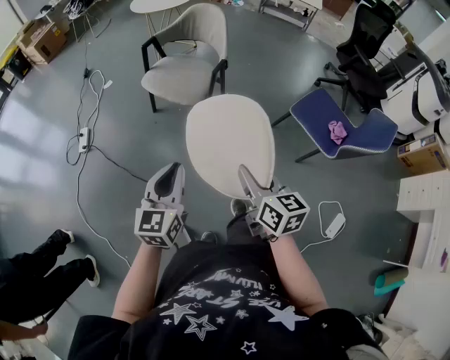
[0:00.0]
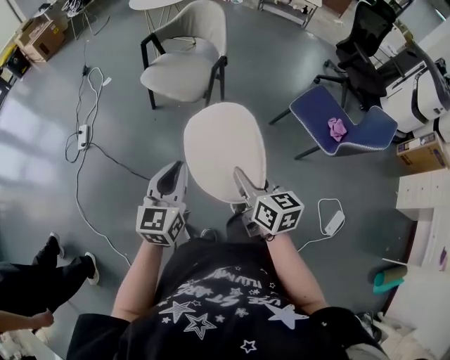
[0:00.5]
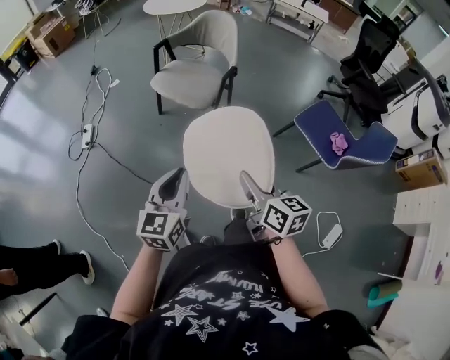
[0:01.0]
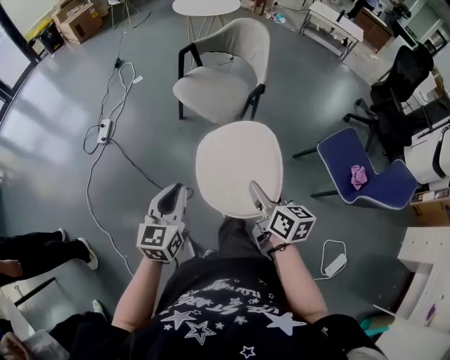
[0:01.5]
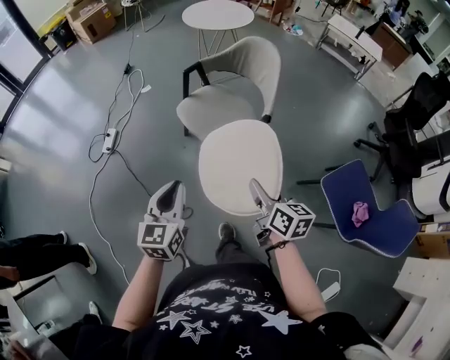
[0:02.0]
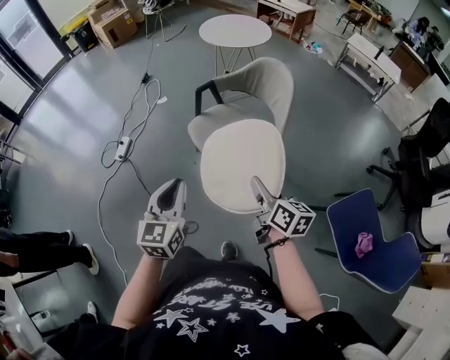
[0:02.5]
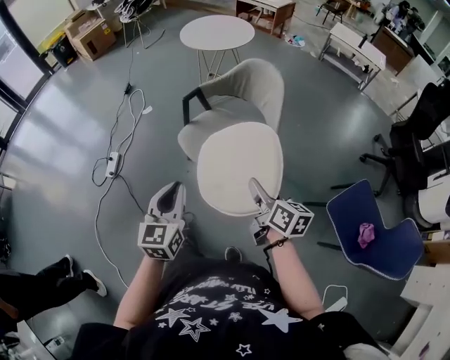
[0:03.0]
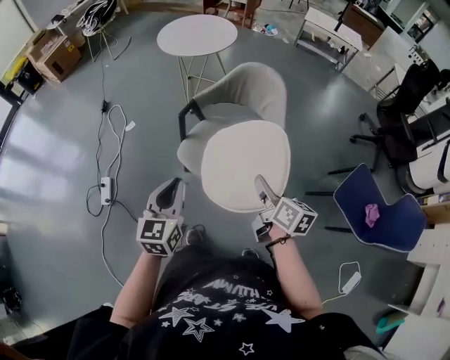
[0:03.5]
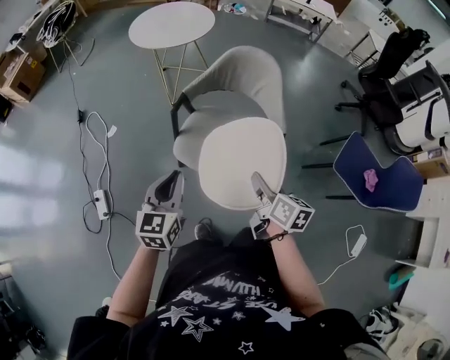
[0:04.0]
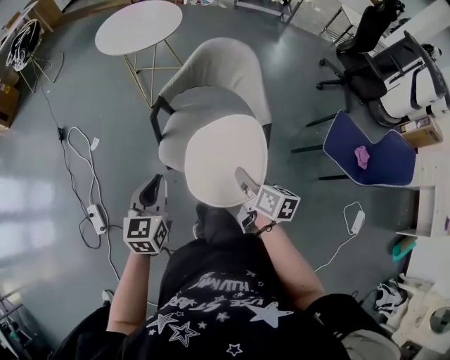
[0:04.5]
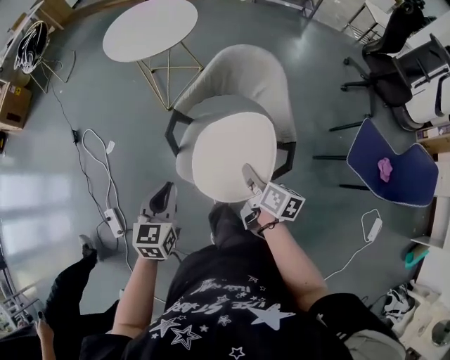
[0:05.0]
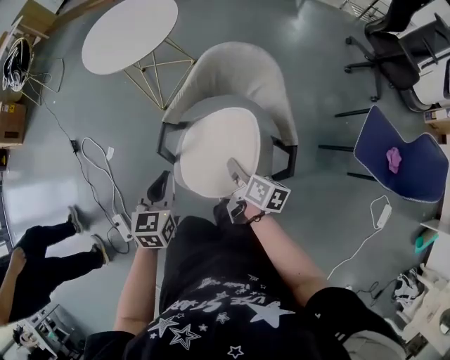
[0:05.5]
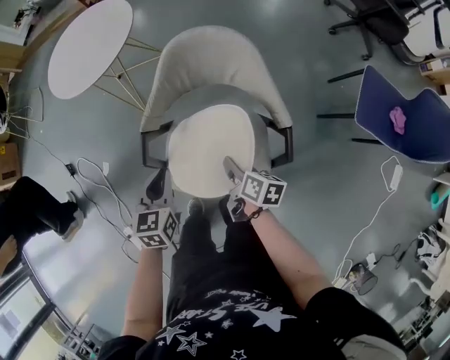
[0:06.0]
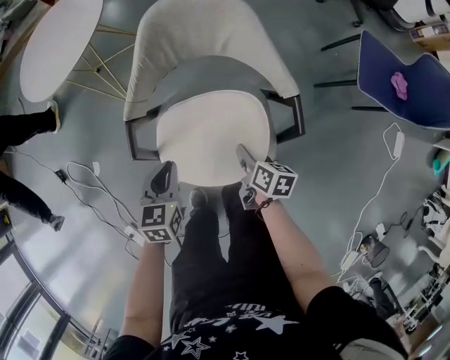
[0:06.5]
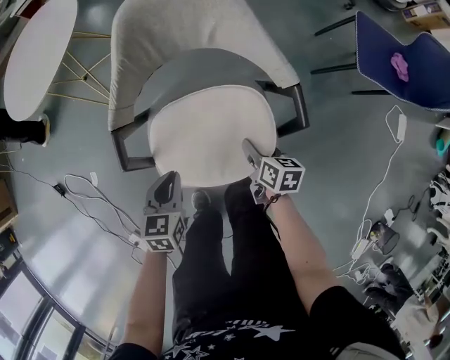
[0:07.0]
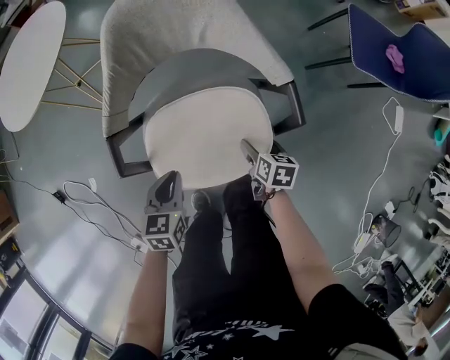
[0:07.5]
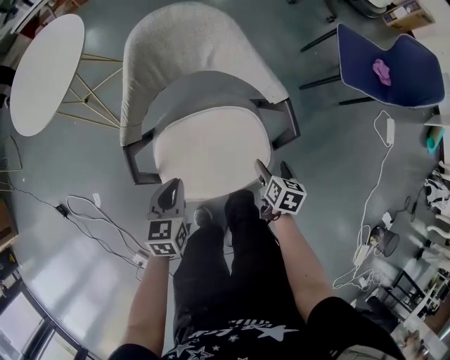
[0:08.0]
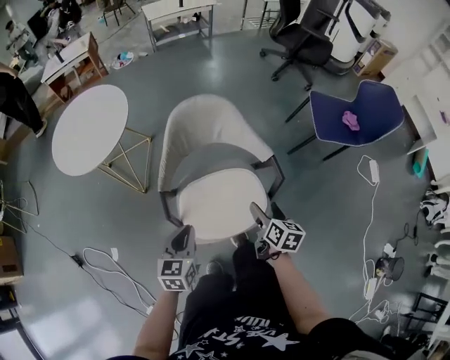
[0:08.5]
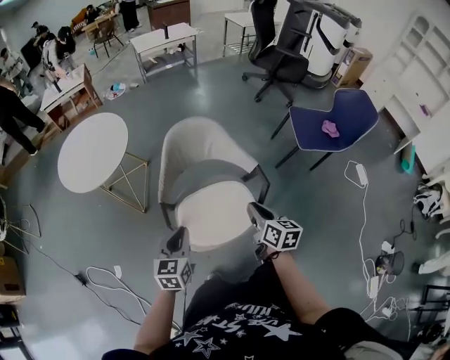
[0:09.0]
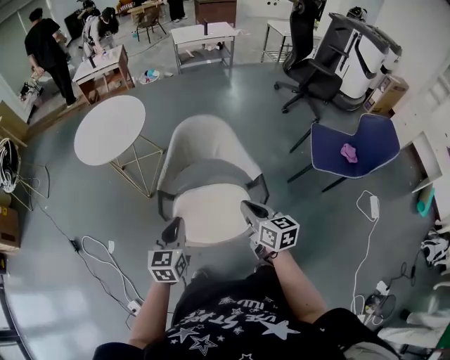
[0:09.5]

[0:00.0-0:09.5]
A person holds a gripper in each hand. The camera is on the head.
0:00.0 to 0:02.0: Both grippers travel together forward, some 20 cm.
0:02.0 to 0:04.0: The right gripper shifts by roughly 25 cm, and changes its angle by roughly 30 degrees. The left gripper moves about 35 cm, and swivels approximately 30 degrees.
0:04.0 to 0:05.5: The left gripper shifts some 20 cm forward. Meanwhile the right gripper goes about 25 cm forward and downward, and turns by roughly 20 degrees.
0:05.5 to 0:07.5: Both grippers travel together downward, roughly 20 cm. The left gripper swivels approximately 30 degrees; the right gripper turns by about 30 degrees, and opens.
0:07.5 to 0:09.5: The grippers both shift upward by approximately 30 cm. The left gripper turns by about 30 degrees; the right gripper angles its fingers upward, by about 30 degrees, and closes up.

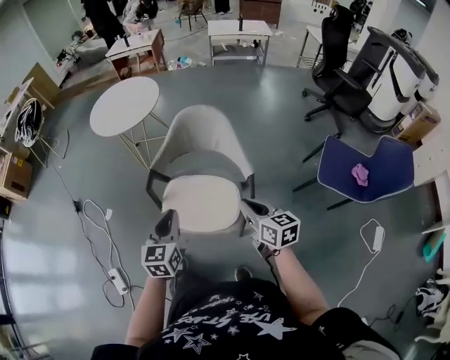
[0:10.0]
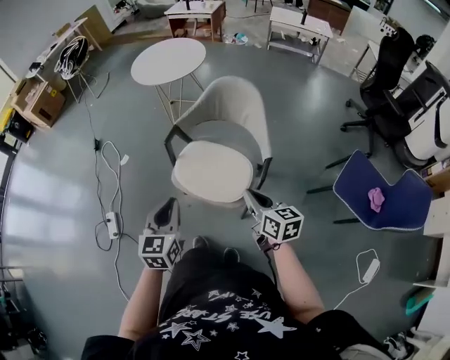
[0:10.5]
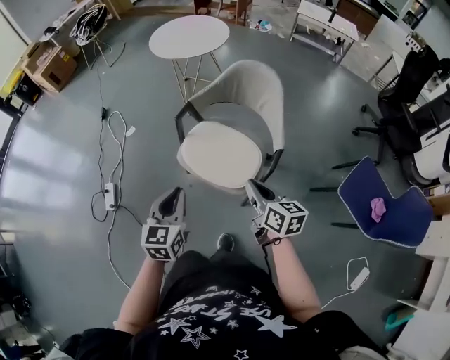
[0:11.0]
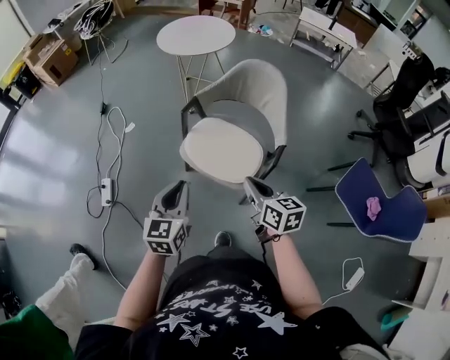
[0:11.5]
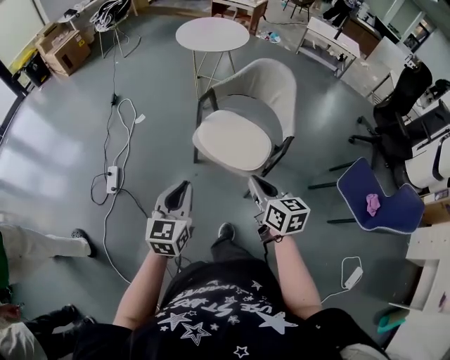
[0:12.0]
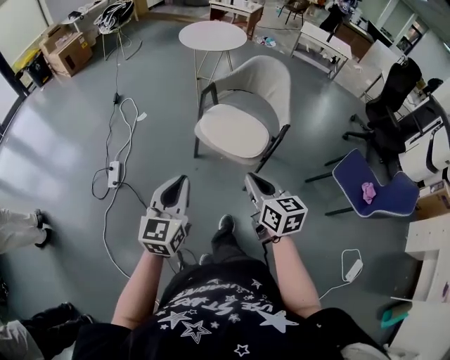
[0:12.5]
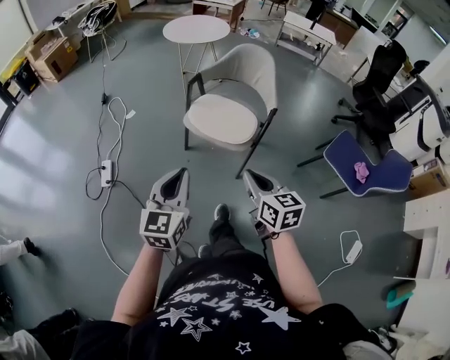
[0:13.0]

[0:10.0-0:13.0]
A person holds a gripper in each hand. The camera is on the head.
0:10.0 to 0:11.5: The left gripper heads backward and to the left, covering approximately 15 cm. The right gripper heads to the left and backward, covering approximately 10 cm.
0:11.5 to 0:13.0: The two grippers go approximately 20 cm backward.

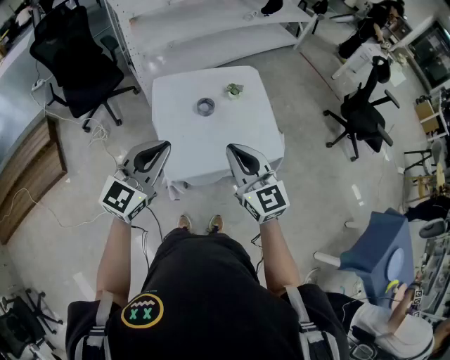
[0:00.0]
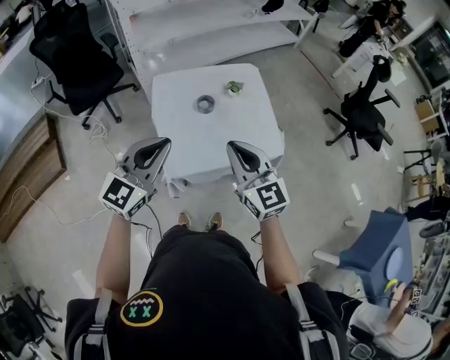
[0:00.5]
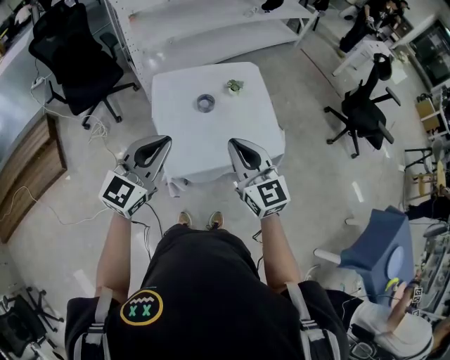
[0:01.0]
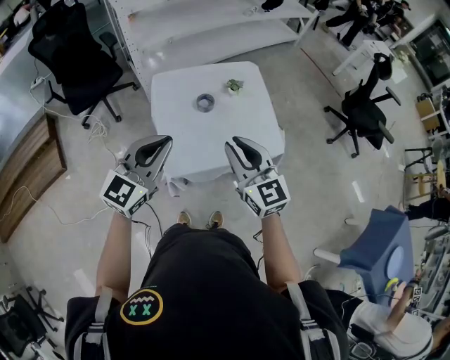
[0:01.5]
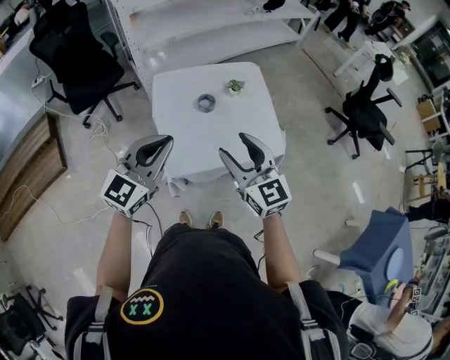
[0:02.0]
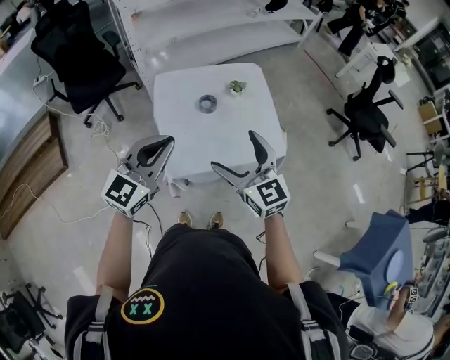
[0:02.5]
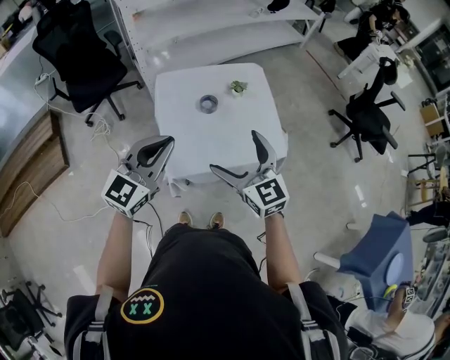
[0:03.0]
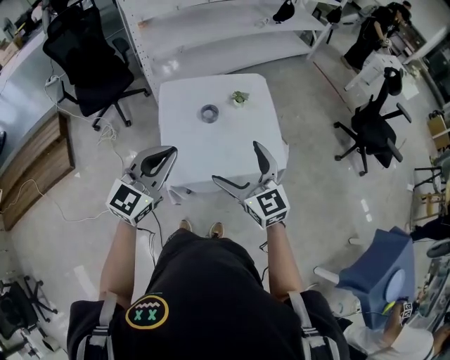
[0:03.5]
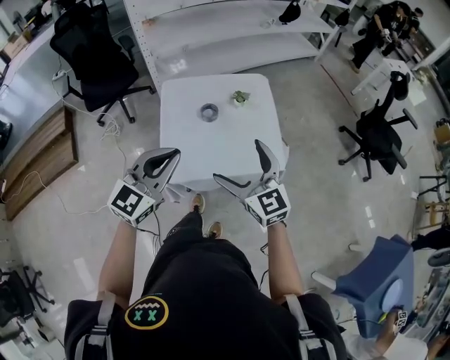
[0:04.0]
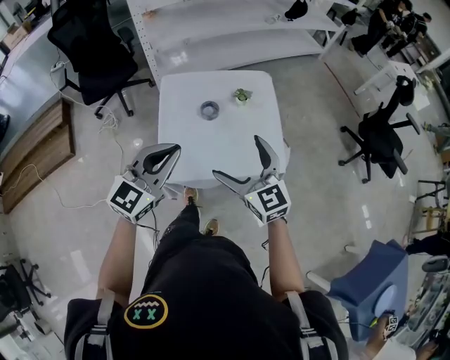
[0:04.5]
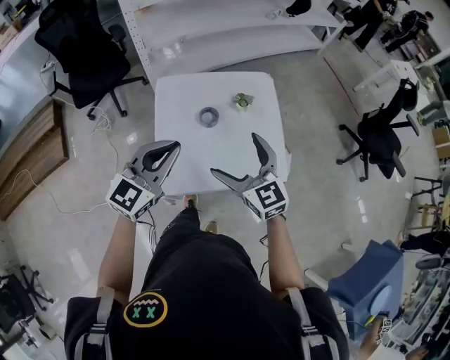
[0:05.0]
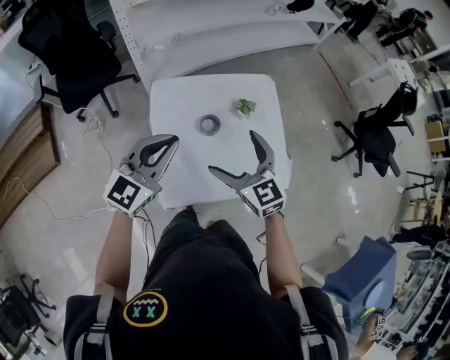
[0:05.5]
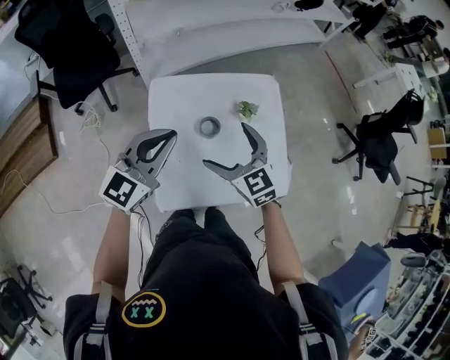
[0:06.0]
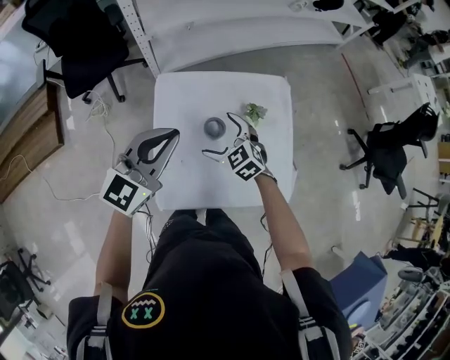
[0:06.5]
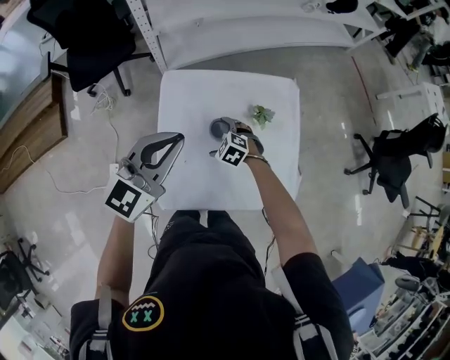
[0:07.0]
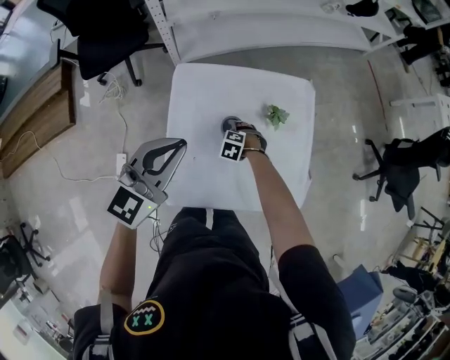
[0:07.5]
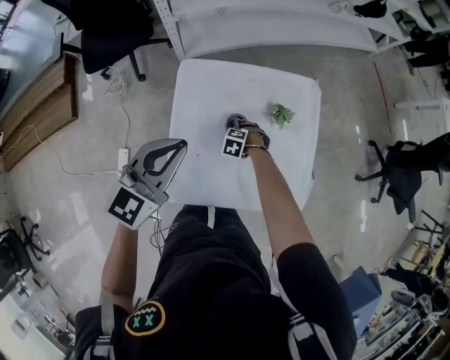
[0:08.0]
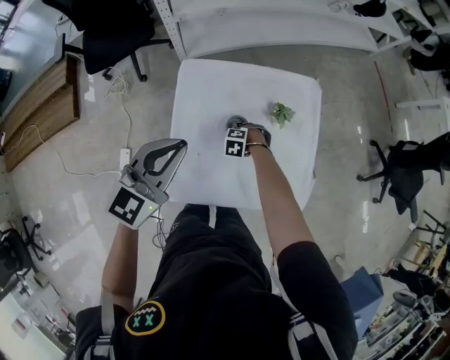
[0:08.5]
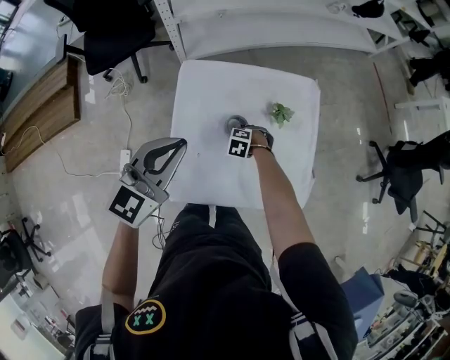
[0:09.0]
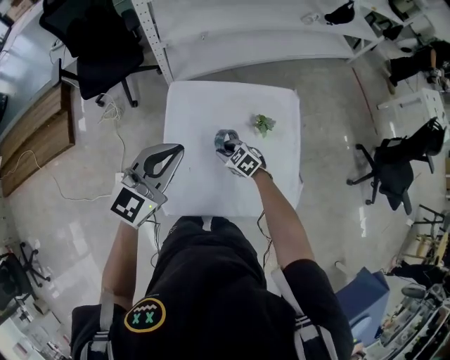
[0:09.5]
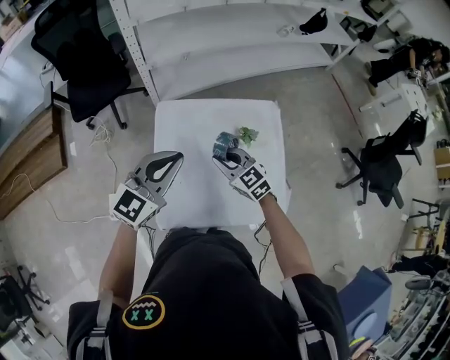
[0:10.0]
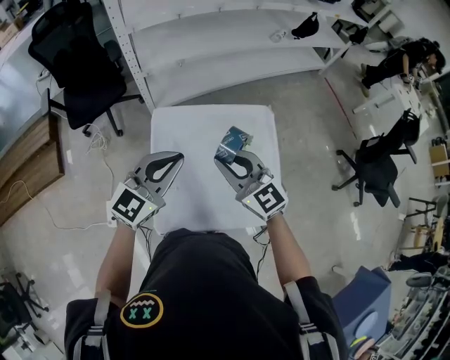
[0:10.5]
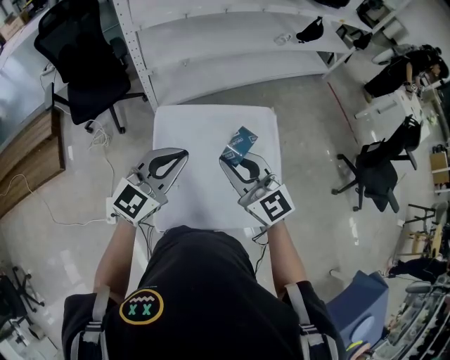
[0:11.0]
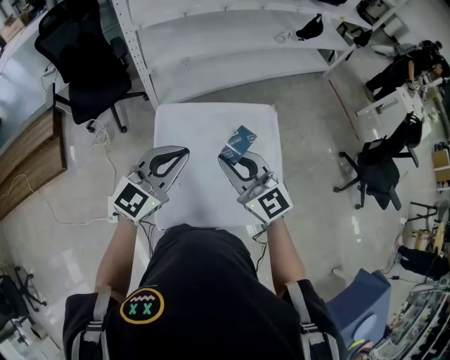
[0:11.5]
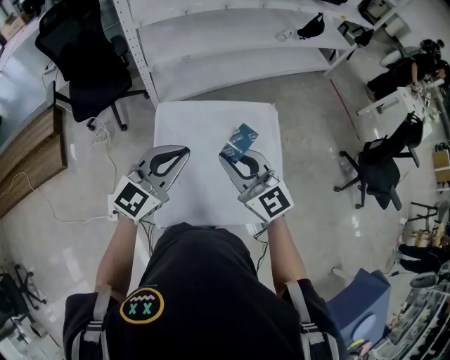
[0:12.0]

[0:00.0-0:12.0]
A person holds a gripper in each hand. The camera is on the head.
0:00.0 to 0:02.0: The right gripper opens its fingers.
0:02.0 to 0:04.0: Both grippers move to the right, roughly 5 cm. The right gripper opens its fingers.
0:04.0 to 0:06.0: The grippers both shift forward by about 25 cm.
0:06.0 to 0:08.0: The right gripper heads downward, covering approximately 35 cm, and tilts its fingers approximately 60 degrees downward.
0:08.0 to 0:10.0: The right gripper travels upward by about 30 cm, tilts its fingers some 50 degrees upward, and closes up.
0:10.0 to 0:12.0: The right gripper moves upward, about 20 cm, and turns by some 30 degrees.

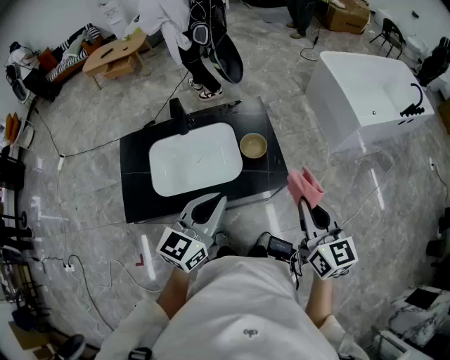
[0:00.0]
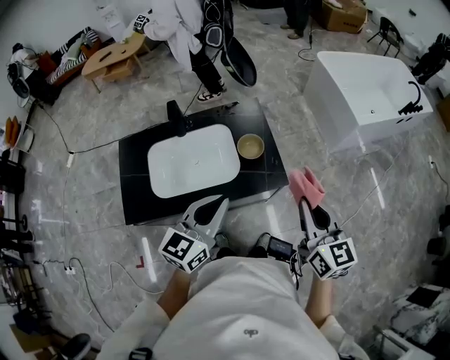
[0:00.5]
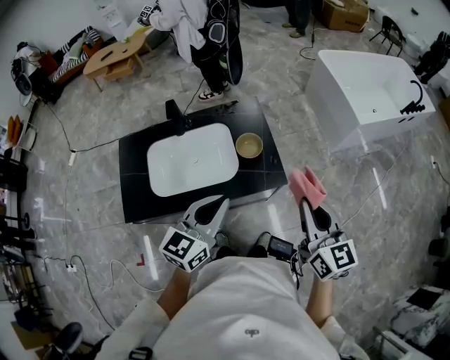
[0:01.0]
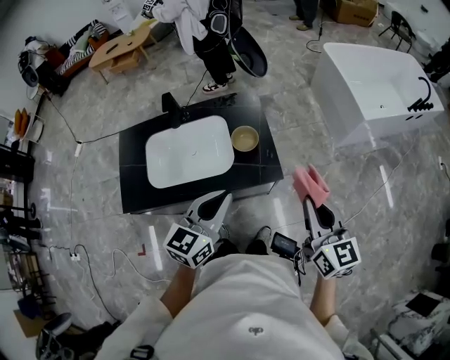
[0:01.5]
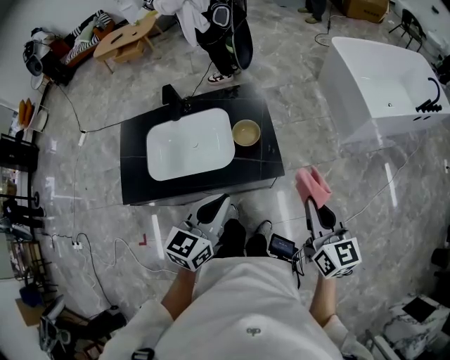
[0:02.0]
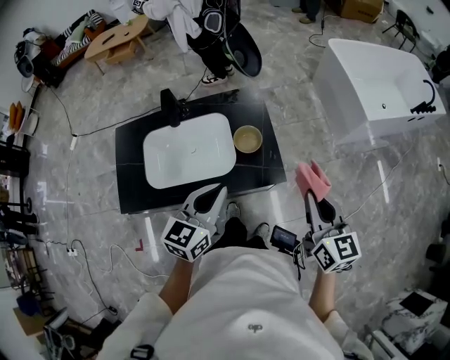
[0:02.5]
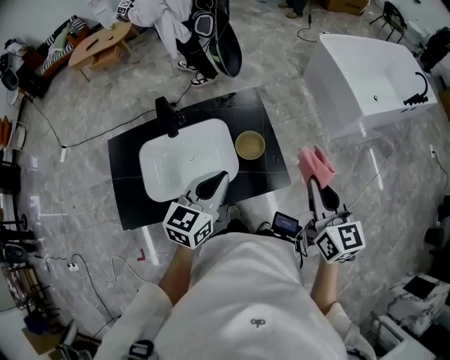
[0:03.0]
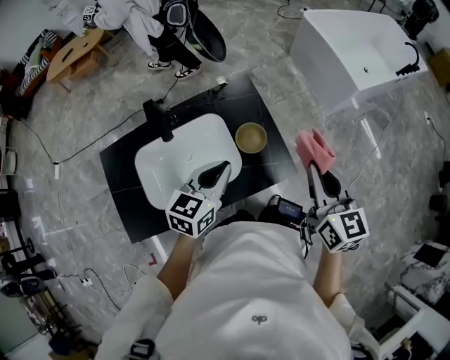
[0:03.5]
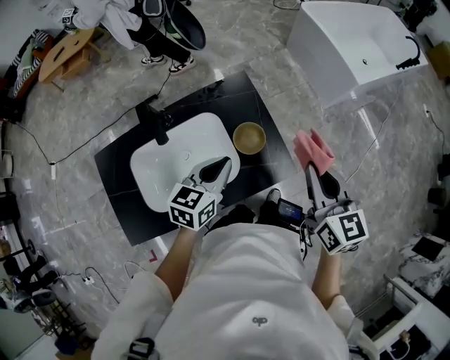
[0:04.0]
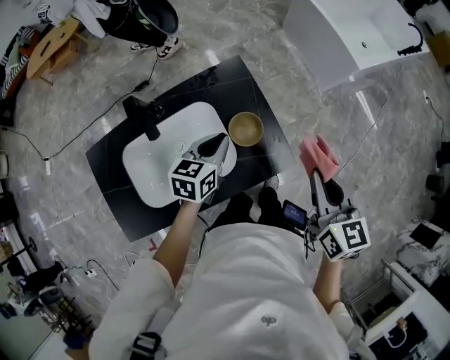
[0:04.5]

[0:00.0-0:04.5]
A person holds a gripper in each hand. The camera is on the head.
0:00.0 to 0:02.0: The grippers both shift to the right by some 10 cm.
0:02.0 to 0:04.5: The left gripper shifts roughly 30 cm forward, downward and to the left, and swivels some 20 degrees, while the right gripper moves forward and to the left, about 15 cm, and changes its angle by some 20 degrees.
